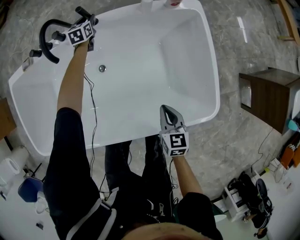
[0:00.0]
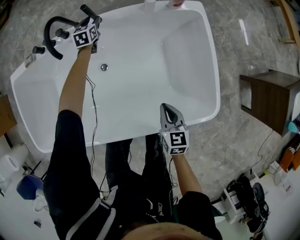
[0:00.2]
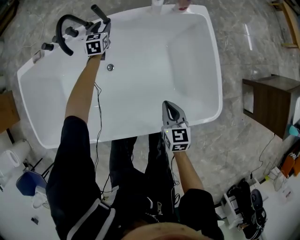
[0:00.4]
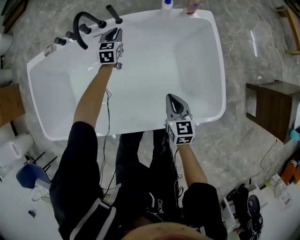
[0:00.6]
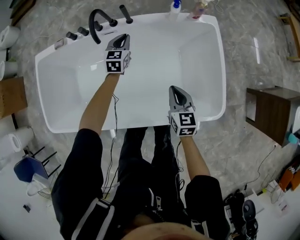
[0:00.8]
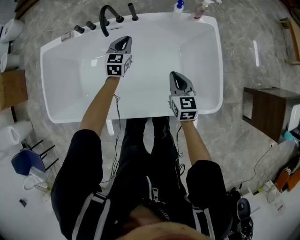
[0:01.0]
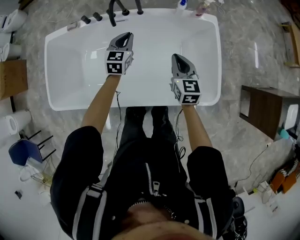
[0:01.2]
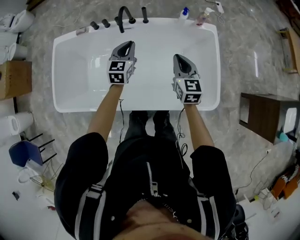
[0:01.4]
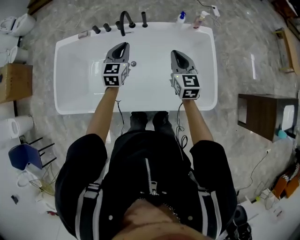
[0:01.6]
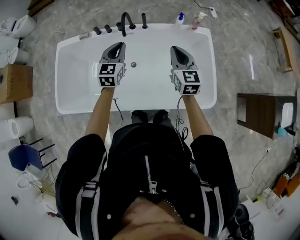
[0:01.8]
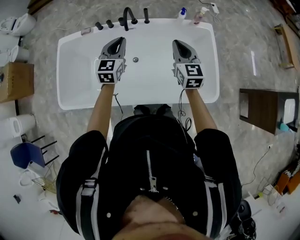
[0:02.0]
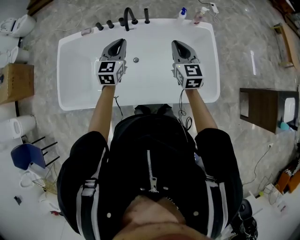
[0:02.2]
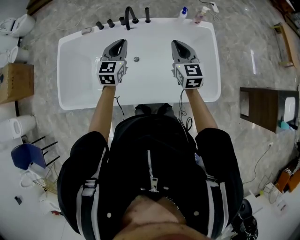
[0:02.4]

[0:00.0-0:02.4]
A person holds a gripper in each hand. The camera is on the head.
0.0 to 1.2 s: The right gripper heads upward and forward, covering approximately 20 cm, and changes its angle by approximately 20 degrees; the left gripper goes roughly 40 cm backward and upward, and closes.
1.2 to 2.4 s: The right gripper shifts approximately 15 cm upward and to the left, while the left gripper shifts approximately 20 cm upward, backward and to the left.

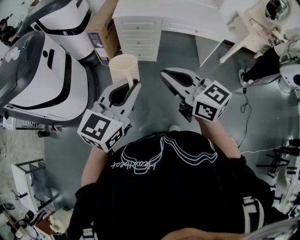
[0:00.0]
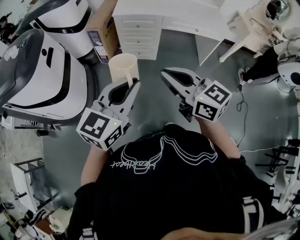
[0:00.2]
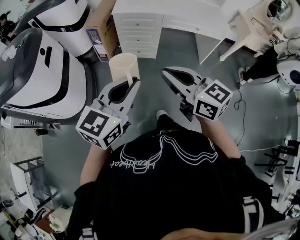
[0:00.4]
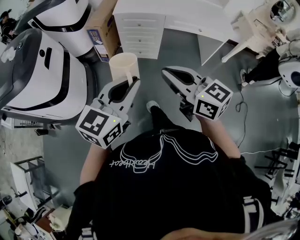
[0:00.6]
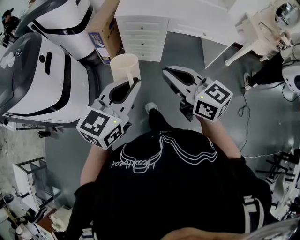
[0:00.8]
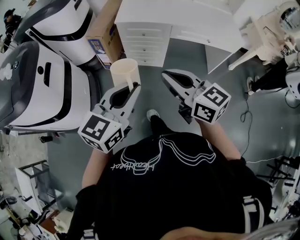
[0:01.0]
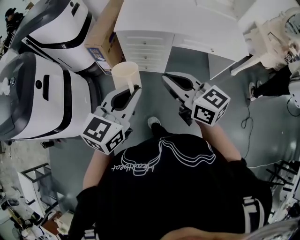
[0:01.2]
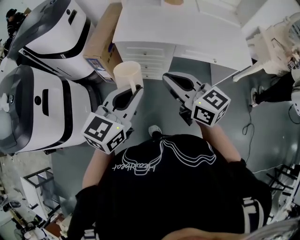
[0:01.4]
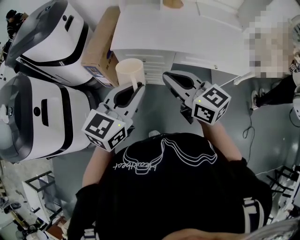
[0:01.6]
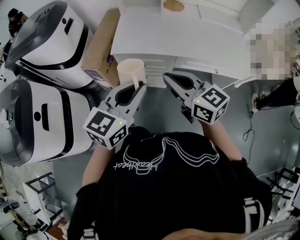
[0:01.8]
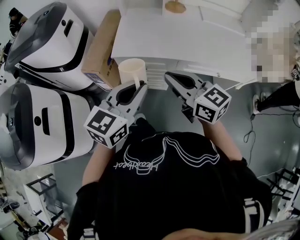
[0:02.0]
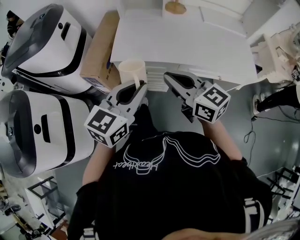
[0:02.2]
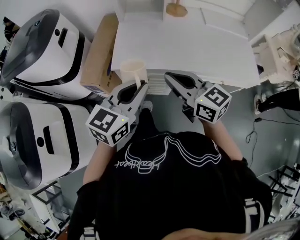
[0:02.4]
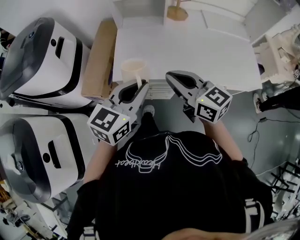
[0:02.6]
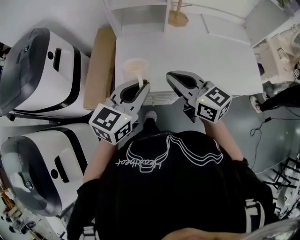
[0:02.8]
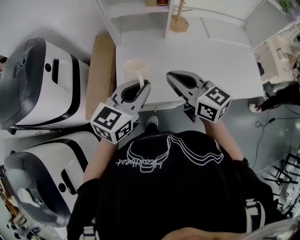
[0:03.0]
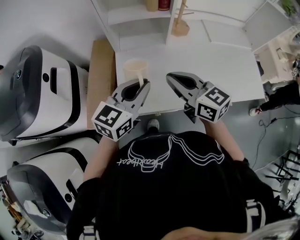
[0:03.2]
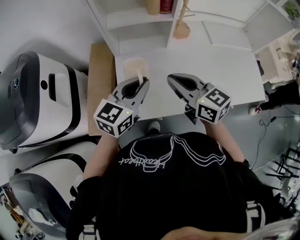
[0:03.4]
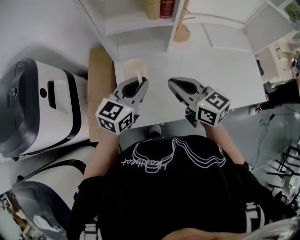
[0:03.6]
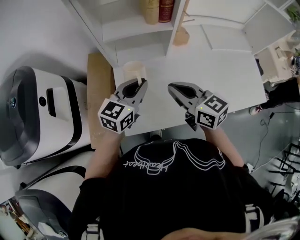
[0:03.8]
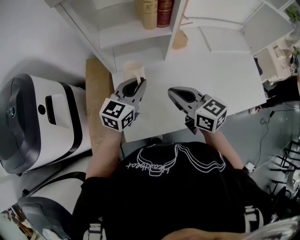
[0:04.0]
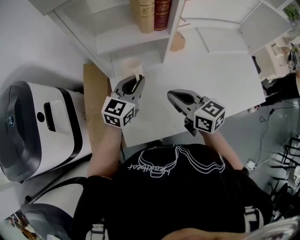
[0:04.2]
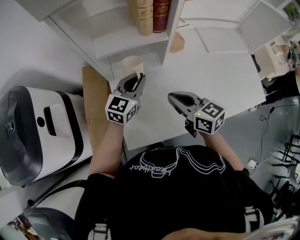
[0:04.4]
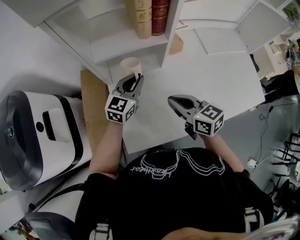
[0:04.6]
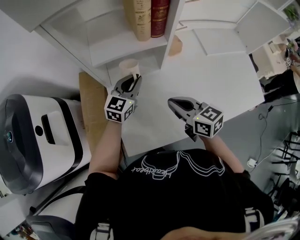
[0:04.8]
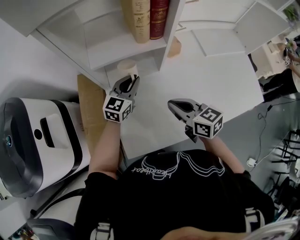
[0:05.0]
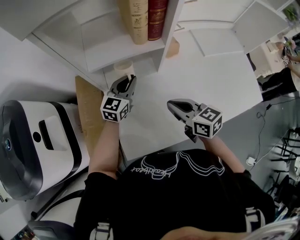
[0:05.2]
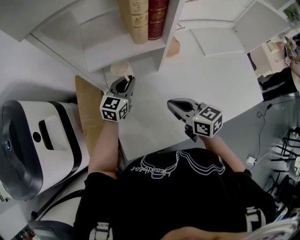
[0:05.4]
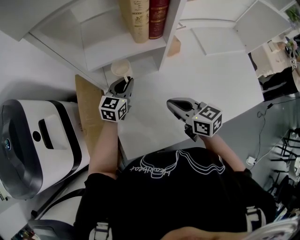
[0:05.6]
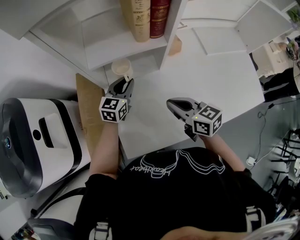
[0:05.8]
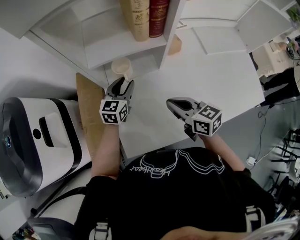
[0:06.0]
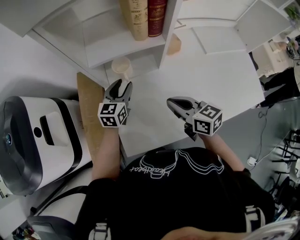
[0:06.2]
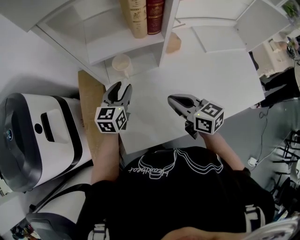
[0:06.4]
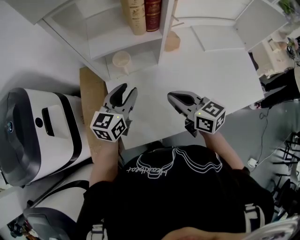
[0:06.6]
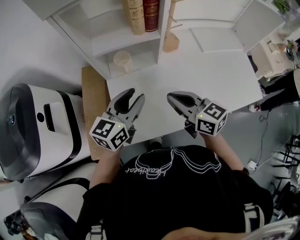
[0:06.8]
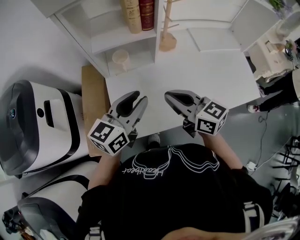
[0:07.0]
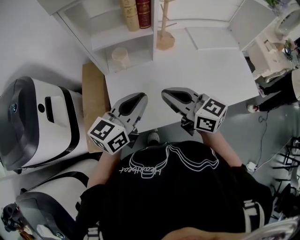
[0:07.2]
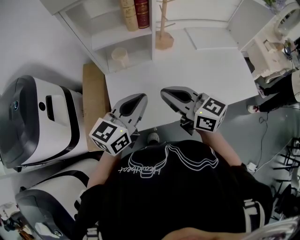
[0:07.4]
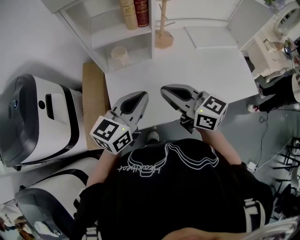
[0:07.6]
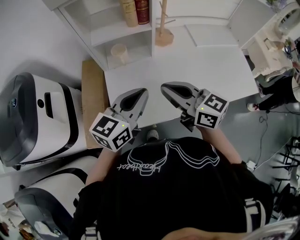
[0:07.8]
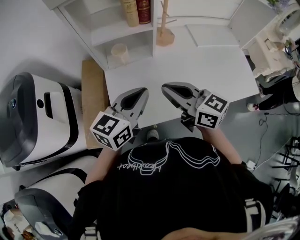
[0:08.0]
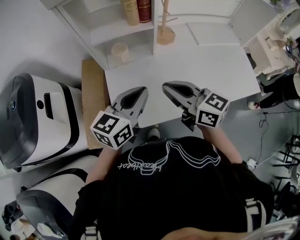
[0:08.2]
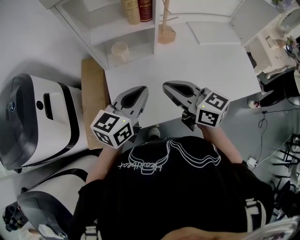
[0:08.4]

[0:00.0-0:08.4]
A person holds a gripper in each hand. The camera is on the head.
0.0 to 1.4 s: The two grippers go some 35 cm forward.
1.4 to 2.8 s: Both grippers move forward, about 35 cm.
2.8 to 4.2 s: The left gripper shifts roughly 30 cm forward. The right gripper is displaced forward and downward by some 20 cm.
4.2 to 5.6 s: The left gripper travels downward and forward by approximately 15 cm. Meanwhile the right gripper moves some 5 cm.
5.6 to 7.0 s: The right gripper shifts some 10 cm upward and backward. Meanwhile the left gripper moves backward and upward, about 25 cm, and opens its fingers.
7.0 to 8.4 s: The left gripper closes up.

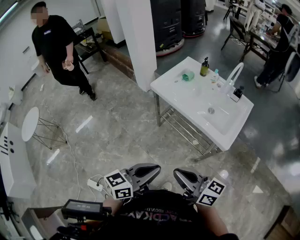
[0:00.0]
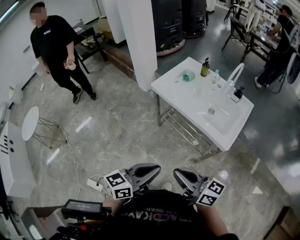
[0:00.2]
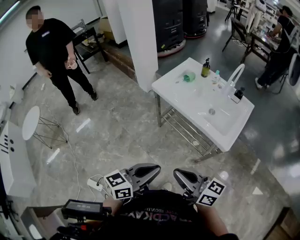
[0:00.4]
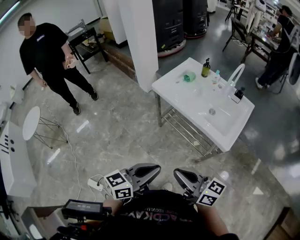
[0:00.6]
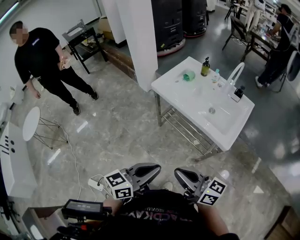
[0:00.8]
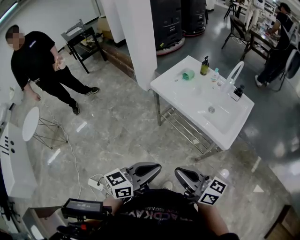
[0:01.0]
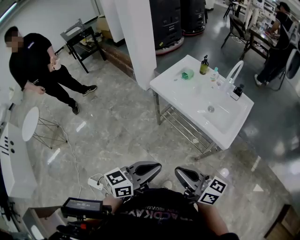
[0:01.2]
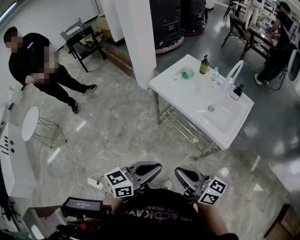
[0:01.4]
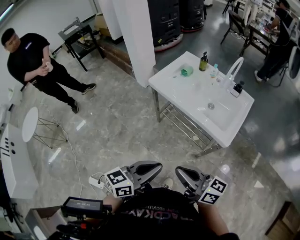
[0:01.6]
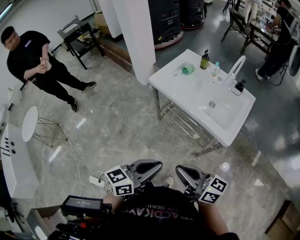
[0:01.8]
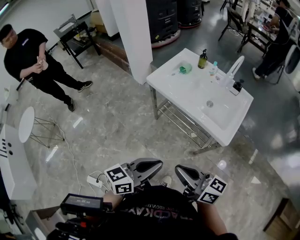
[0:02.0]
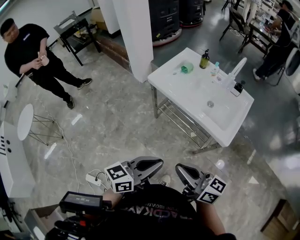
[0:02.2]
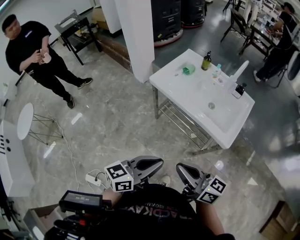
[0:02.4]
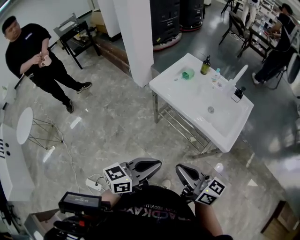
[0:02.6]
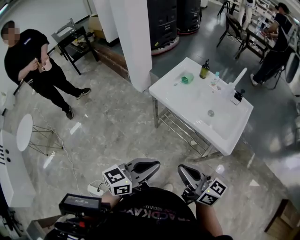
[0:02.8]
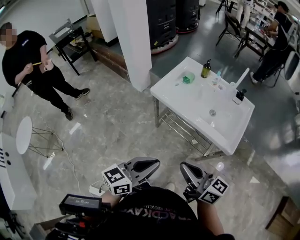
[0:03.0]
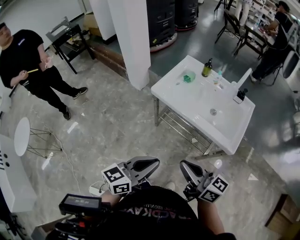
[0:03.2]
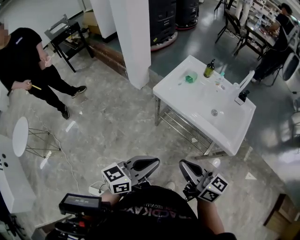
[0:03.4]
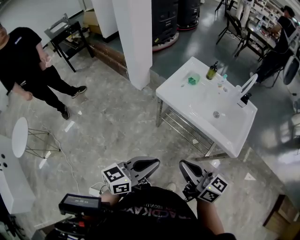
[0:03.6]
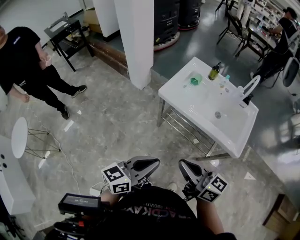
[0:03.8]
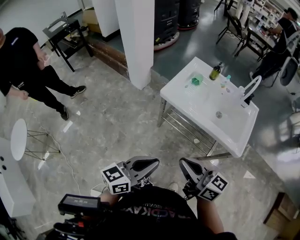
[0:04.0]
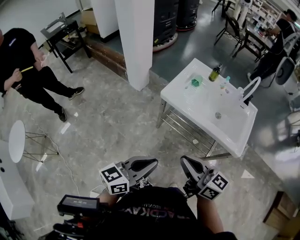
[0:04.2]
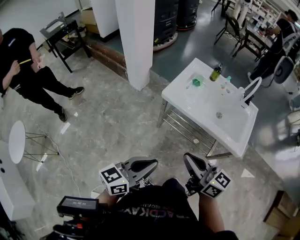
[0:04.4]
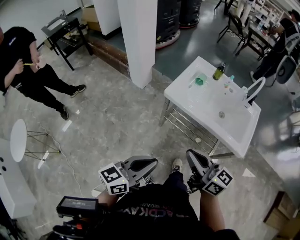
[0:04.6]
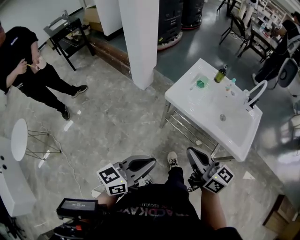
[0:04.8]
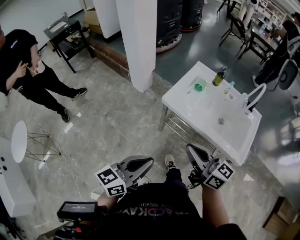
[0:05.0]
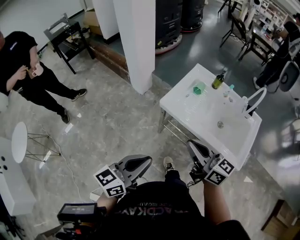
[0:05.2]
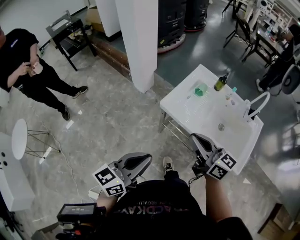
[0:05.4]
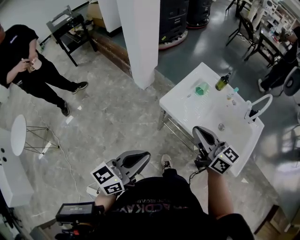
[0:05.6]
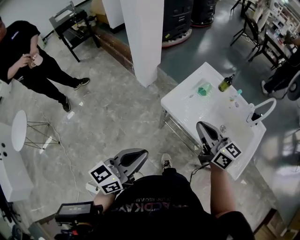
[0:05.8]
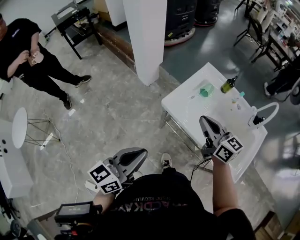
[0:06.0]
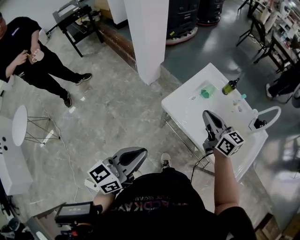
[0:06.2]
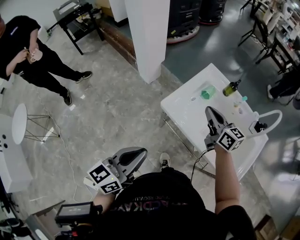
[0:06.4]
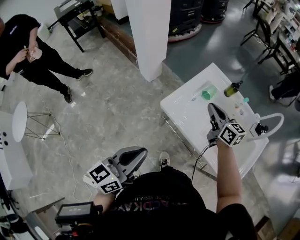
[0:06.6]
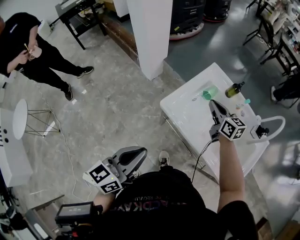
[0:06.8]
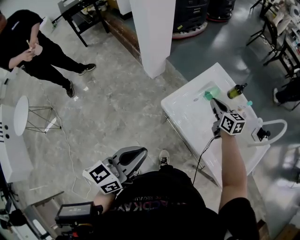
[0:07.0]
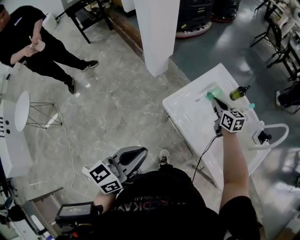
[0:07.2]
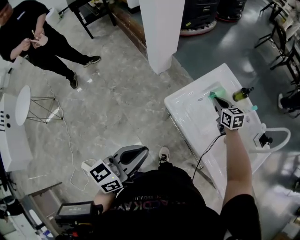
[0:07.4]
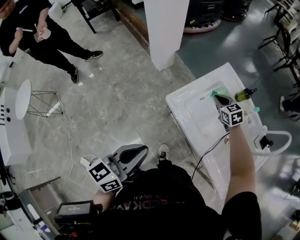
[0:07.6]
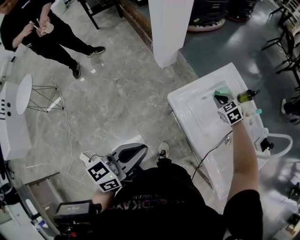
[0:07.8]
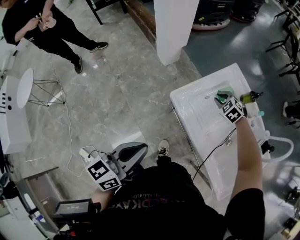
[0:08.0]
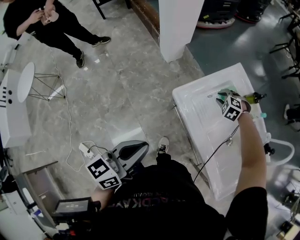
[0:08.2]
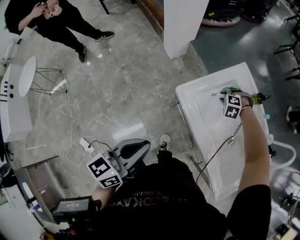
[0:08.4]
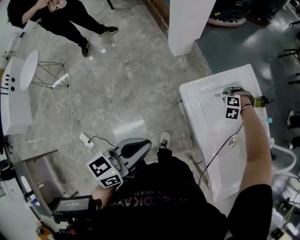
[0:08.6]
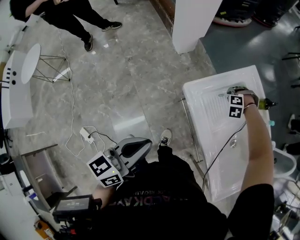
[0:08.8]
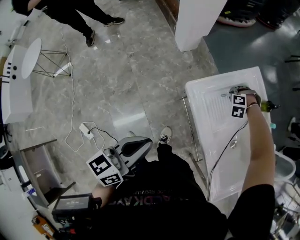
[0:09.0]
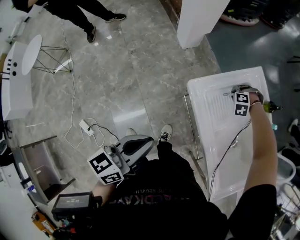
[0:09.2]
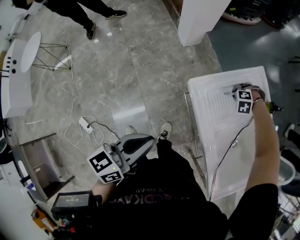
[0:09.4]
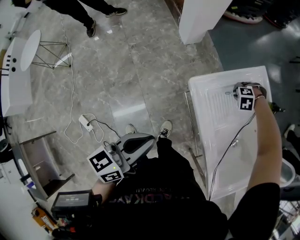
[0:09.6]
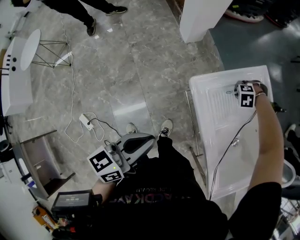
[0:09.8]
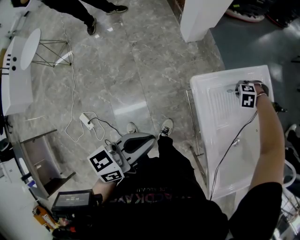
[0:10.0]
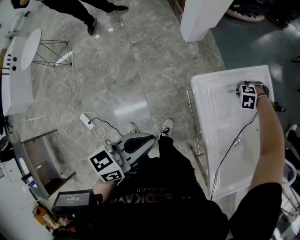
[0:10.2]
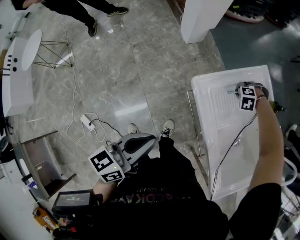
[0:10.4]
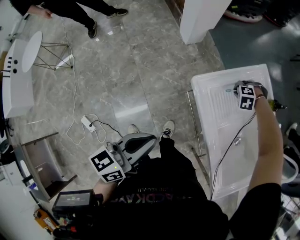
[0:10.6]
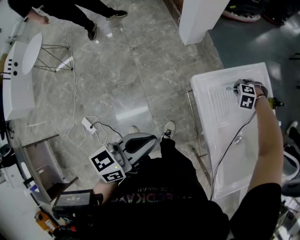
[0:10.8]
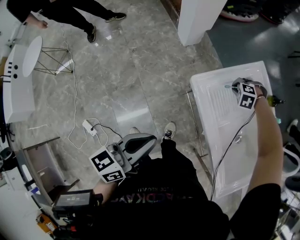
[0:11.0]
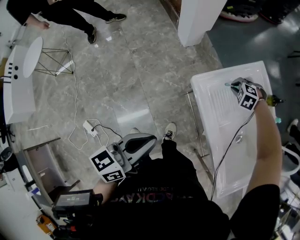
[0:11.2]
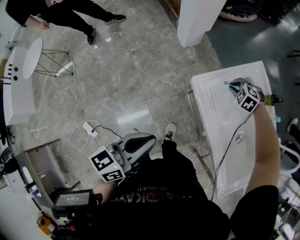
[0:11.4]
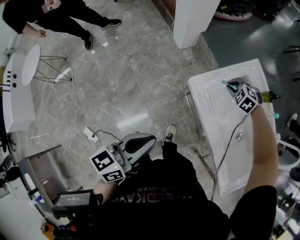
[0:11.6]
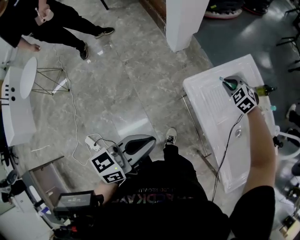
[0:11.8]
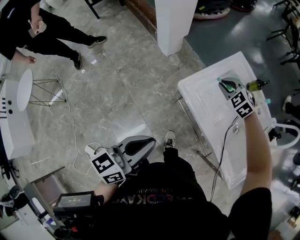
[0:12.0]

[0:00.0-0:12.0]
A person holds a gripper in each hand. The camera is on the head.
0.0 to 1.6 s: Both grippers stay put.
1.6 to 3.0 s: The two grippers go approximately 10 cm forward and to the left.
3.0 to 4.4 s: The right gripper moves to the left and forward, some 15 cm; the left gripper shifts roughly 15 cm to the left.
4.4 to 6.0 s: The left gripper heads forward, covering some 15 cm; the right gripper goes about 30 cm forward.
6.0 to 7.6 s: The right gripper heads forward and downward, covering roughly 30 cm, and tilts its fingers about 40 degrees downward. Meanwhile the left gripper ends up some 5 cm from where it was.
7.6 to 9.0 s: The right gripper travels downward by roughly 10 cm, and rolls counterclockwise, seen from behind, by some 80 degrees.
9.0 to 10.4 s: The grippers stay close to where they were, moving slightly.
10.4 to 12.0 s: The right gripper moves upward, about 15 cm, and points its fingers about 30 degrees further upward.

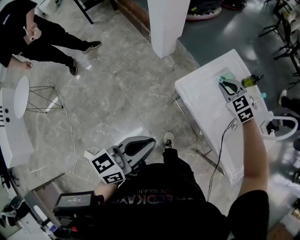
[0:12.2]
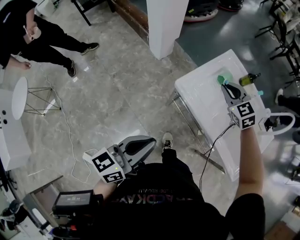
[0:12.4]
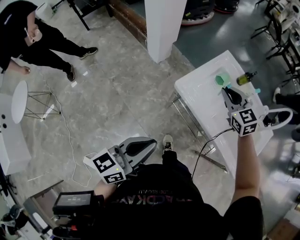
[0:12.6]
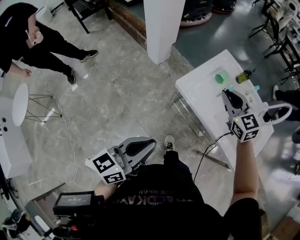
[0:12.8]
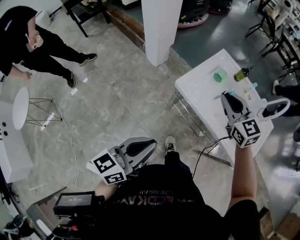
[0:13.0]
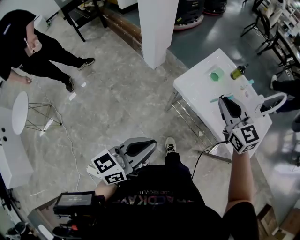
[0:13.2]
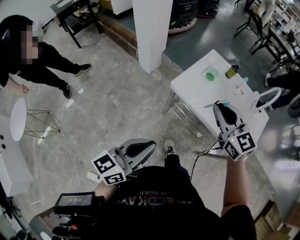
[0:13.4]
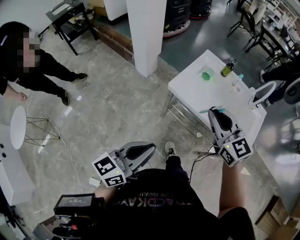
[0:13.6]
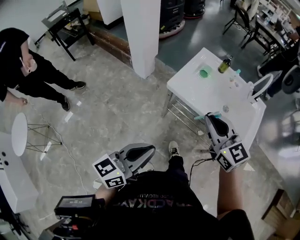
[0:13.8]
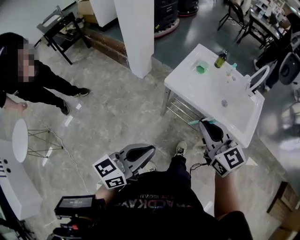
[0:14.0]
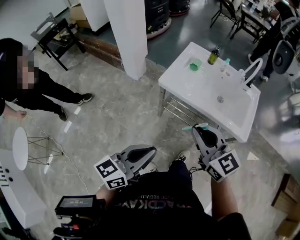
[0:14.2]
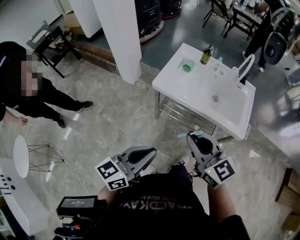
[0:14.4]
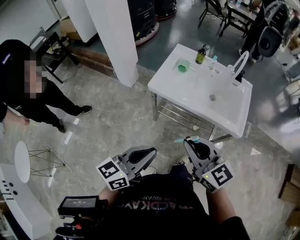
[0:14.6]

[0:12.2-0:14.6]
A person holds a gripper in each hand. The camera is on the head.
12.2 to 13.4 s: The right gripper goes some 25 cm backward and upward, and turns by approximately 40 degrees. Meanwhile the left gripper moves backward, some 10 cm.
13.4 to 14.6 s: The right gripper is displaced backward by roughly 20 cm. Meanwhile the left gripper moves some 5 cm.
